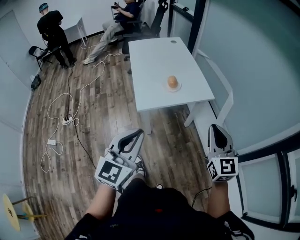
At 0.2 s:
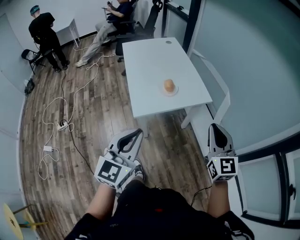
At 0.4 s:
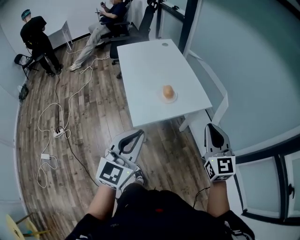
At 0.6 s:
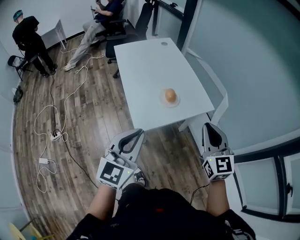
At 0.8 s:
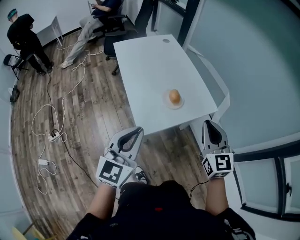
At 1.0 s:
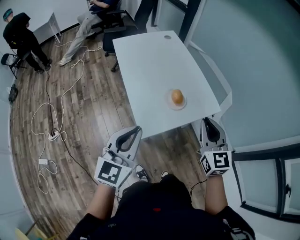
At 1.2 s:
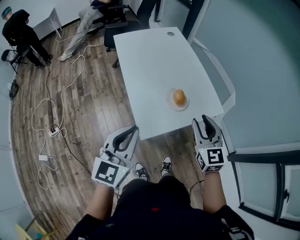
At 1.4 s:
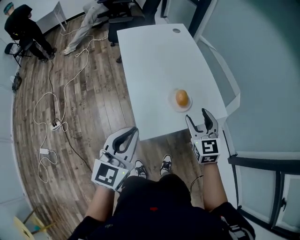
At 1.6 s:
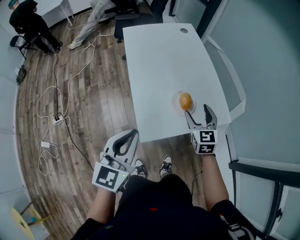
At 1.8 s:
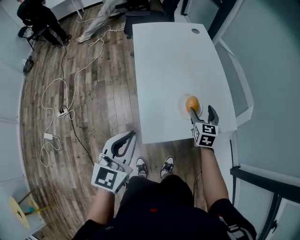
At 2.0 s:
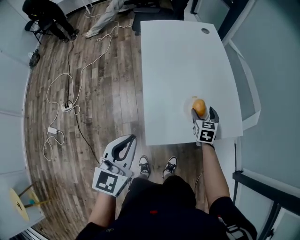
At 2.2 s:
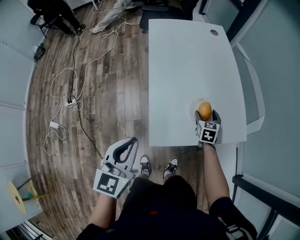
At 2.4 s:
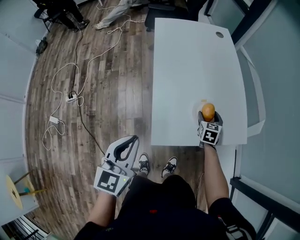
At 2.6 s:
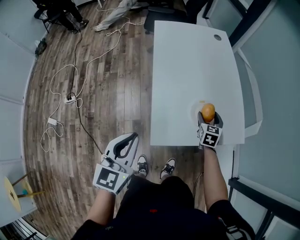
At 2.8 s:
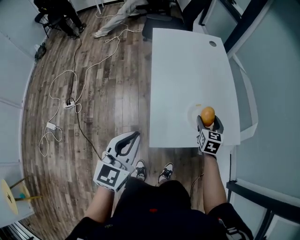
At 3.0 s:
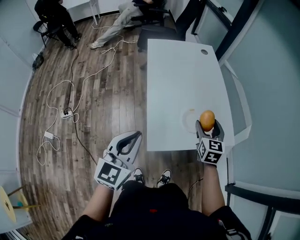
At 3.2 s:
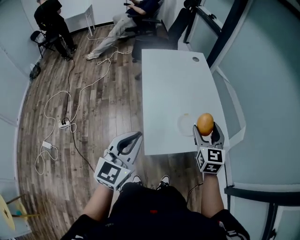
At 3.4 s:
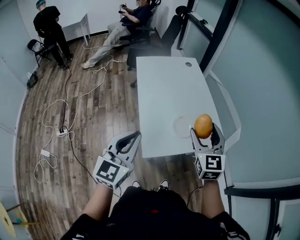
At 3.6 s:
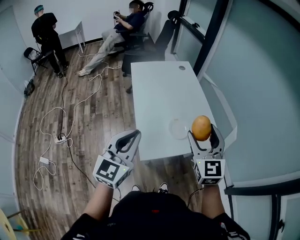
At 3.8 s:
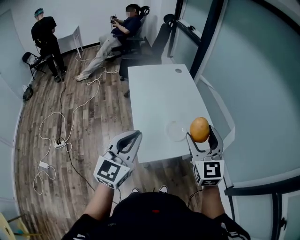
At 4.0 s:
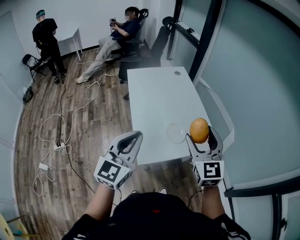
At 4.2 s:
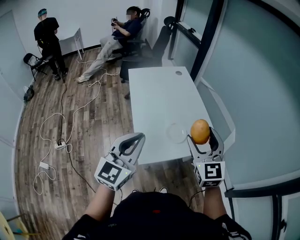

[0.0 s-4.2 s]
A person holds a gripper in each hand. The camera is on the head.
0.0 to 1.4 s: The two grippers go some 35 cm forward and to the left. The right gripper opens.
1.4 to 2.8 s: The left gripper is displaced to the left by about 5 cm. The right gripper shifts roughly 15 cm forward and downward.
2.8 to 4.2 s: The right gripper moves upward and backward, some 35 cm, and swivels approximately 30 degrees. The left gripper shifts some 15 cm upward and to the right, and swivels roughly 20 degrees.

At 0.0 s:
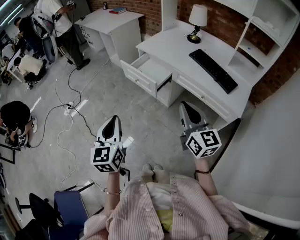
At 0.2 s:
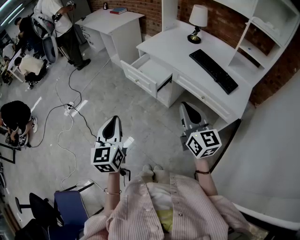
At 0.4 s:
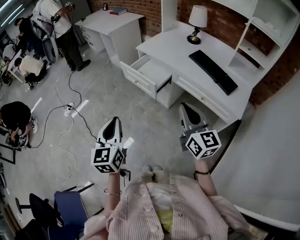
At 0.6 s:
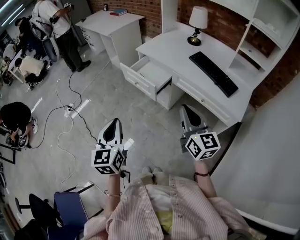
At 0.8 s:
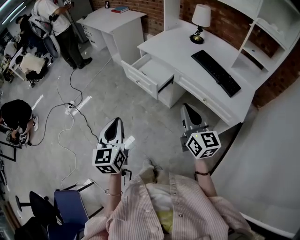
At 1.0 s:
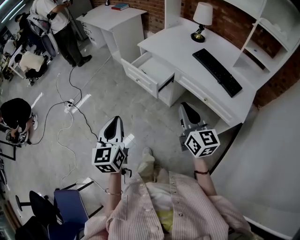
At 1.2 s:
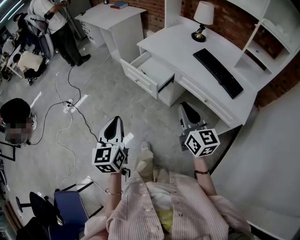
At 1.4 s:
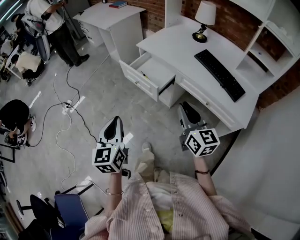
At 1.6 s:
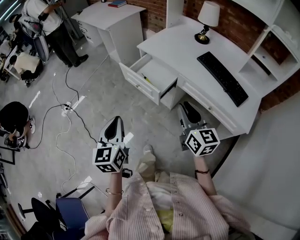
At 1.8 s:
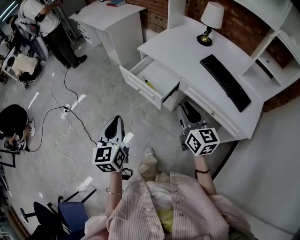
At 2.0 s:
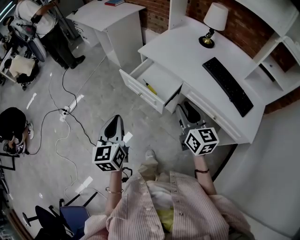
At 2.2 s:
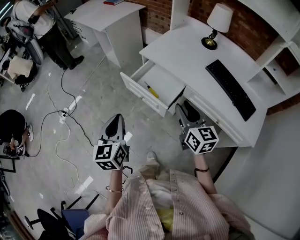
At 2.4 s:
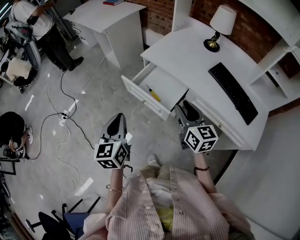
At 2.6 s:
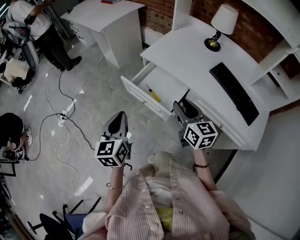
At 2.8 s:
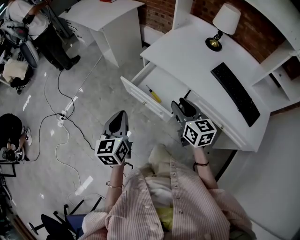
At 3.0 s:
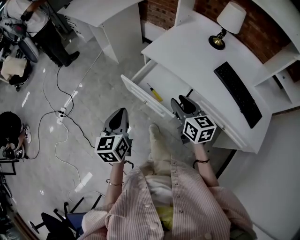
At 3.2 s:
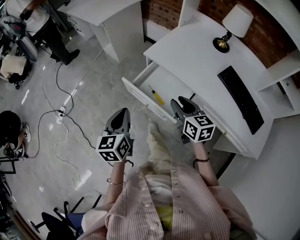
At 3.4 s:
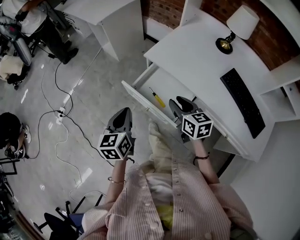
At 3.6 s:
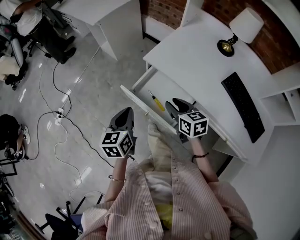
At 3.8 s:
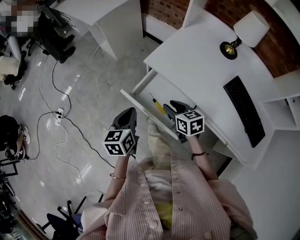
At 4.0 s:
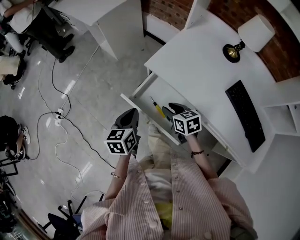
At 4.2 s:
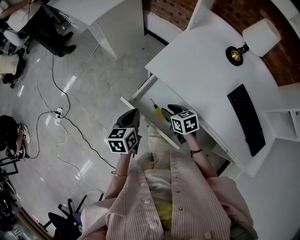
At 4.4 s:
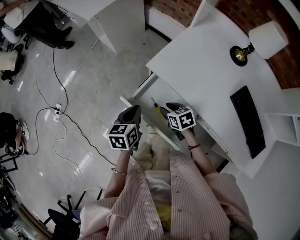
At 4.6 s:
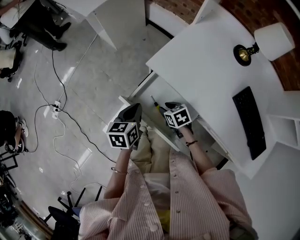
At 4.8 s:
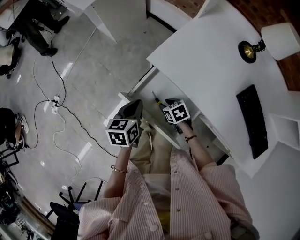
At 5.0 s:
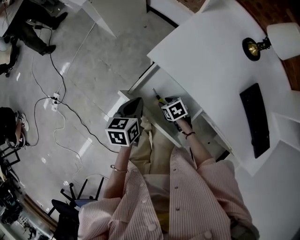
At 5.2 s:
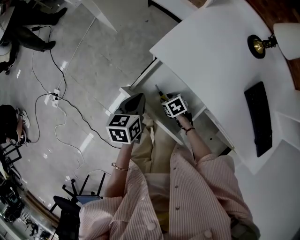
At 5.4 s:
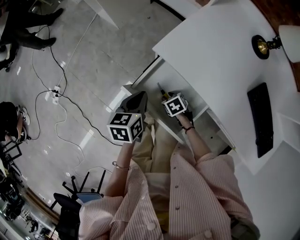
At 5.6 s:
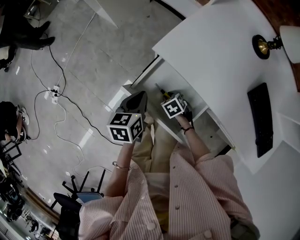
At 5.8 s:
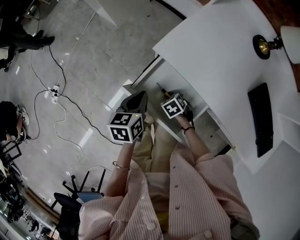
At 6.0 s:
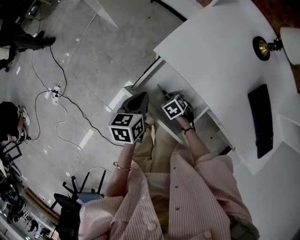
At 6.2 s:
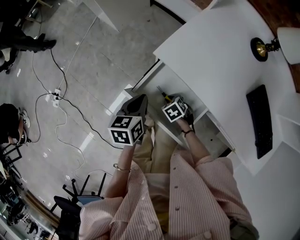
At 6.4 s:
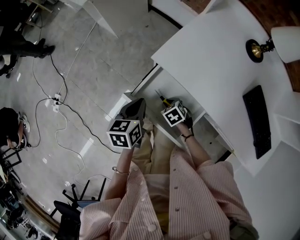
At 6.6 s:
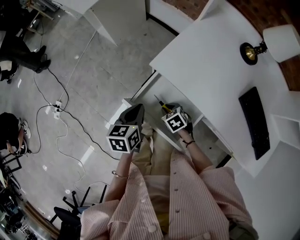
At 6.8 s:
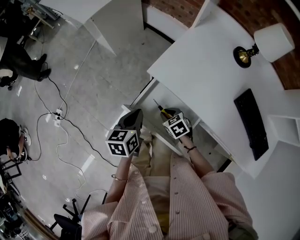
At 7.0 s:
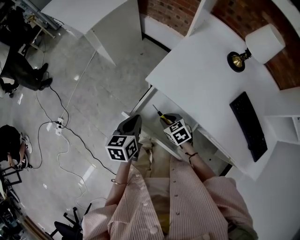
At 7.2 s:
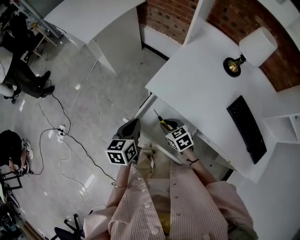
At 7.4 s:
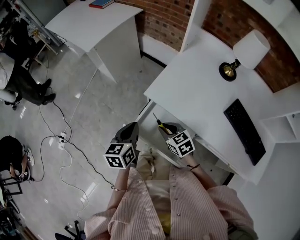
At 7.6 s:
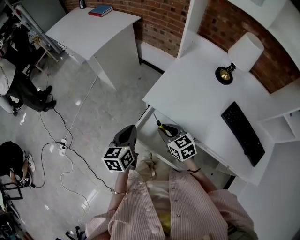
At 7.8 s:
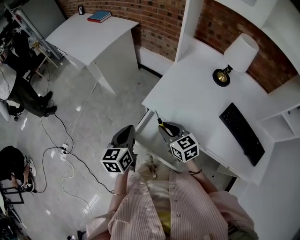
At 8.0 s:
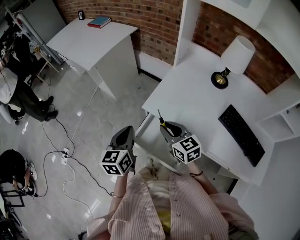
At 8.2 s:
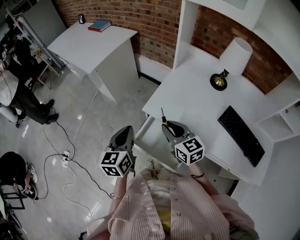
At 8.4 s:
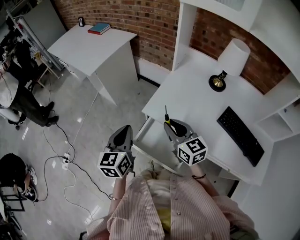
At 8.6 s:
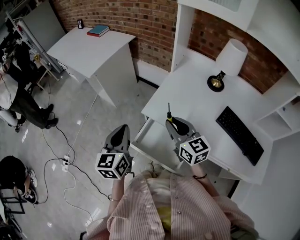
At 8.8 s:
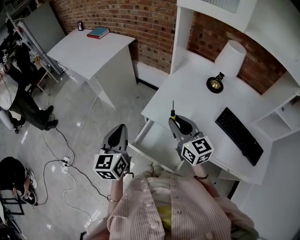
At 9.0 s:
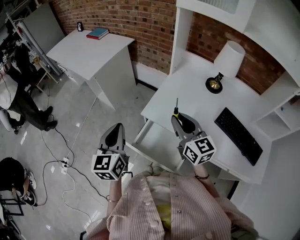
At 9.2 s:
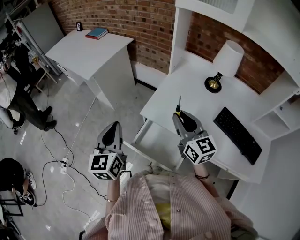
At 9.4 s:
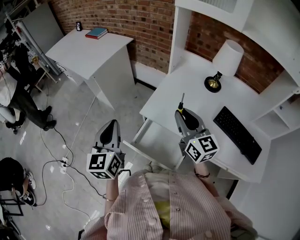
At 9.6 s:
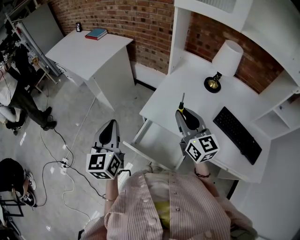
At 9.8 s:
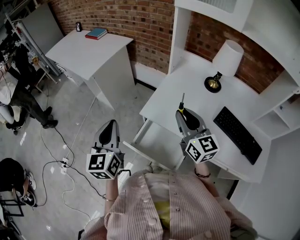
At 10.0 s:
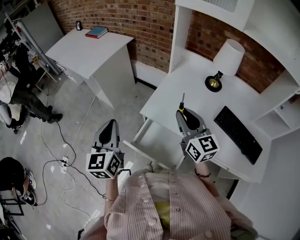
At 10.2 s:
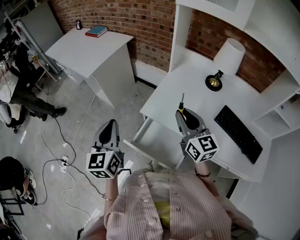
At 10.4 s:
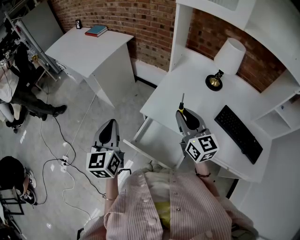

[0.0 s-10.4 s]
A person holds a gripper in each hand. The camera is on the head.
0.0 to 1.4 s: The left gripper heads forward, covering approximately 10 cm. Meanwhile the right gripper travels forward and downward by some 10 cm.
1.4 to 3.0 s: Both grippers travel together forward, about 30 cm.
3.0 to 4.4 s: The right gripper is displaced downward and forward by about 30 cm, and tips its fingers downward by roughly 30 degrees. The left gripper heads forward and downward, covering approximately 25 cm, and turns by roughly 20 degrees.
4.4 to 6.0 s: The left gripper changes place by approximately 5 cm. The right gripper moves downward, some 15 cm, and changes its angle by approximately 30 degrees.
6.0 to 7.4 s: The left gripper moves upward, roughly 10 cm, while the right gripper moves upward, some 20 cm, and tilts its fingers about 30 degrees upward.
7.4 to 9.0 s: Both grippers travel together upward, approximately 20 cm. The right gripper tilts its fingers roughly 40 degrees upward. The left gripper turns by approximately 20 degrees.
9.0 to 10.4 s: The grippers make only small movements.

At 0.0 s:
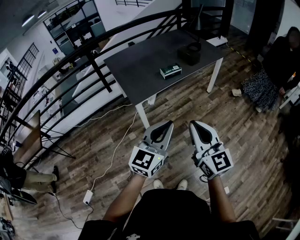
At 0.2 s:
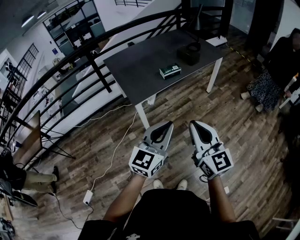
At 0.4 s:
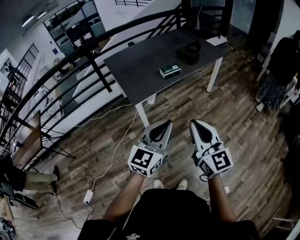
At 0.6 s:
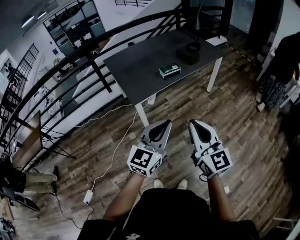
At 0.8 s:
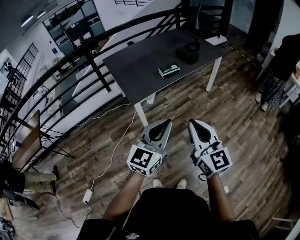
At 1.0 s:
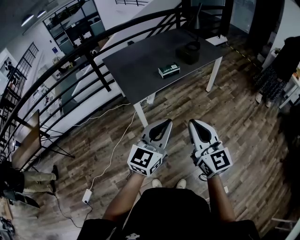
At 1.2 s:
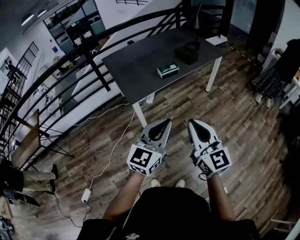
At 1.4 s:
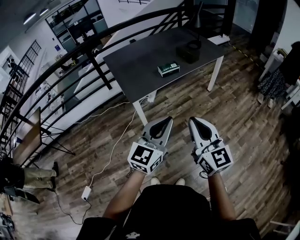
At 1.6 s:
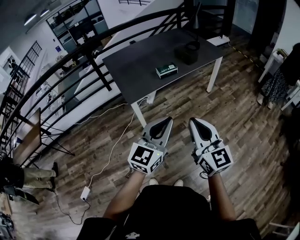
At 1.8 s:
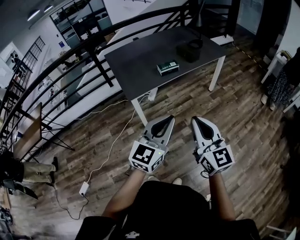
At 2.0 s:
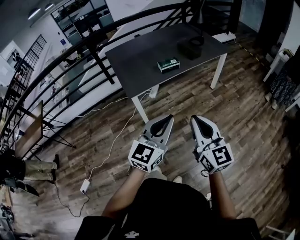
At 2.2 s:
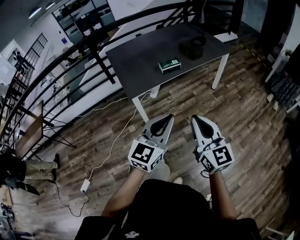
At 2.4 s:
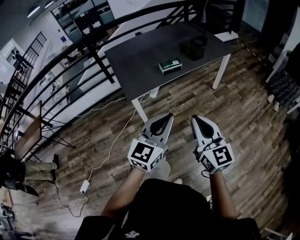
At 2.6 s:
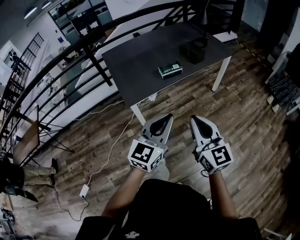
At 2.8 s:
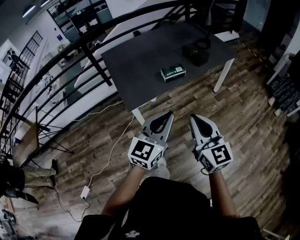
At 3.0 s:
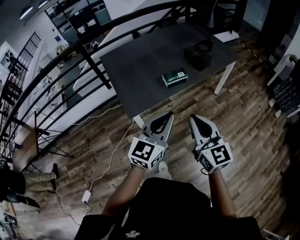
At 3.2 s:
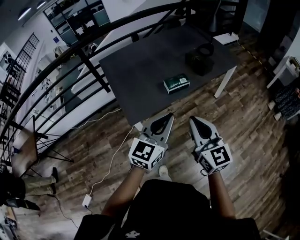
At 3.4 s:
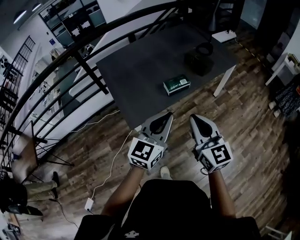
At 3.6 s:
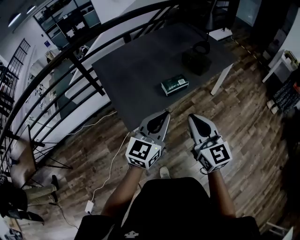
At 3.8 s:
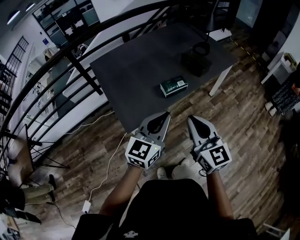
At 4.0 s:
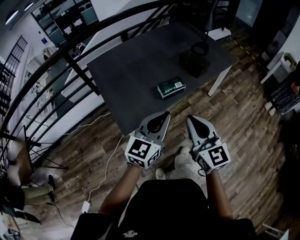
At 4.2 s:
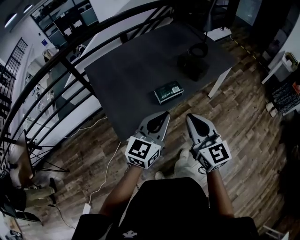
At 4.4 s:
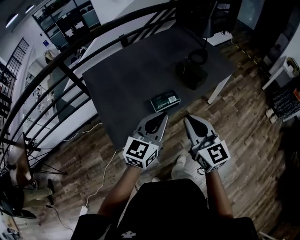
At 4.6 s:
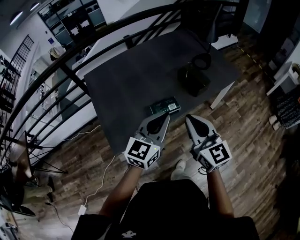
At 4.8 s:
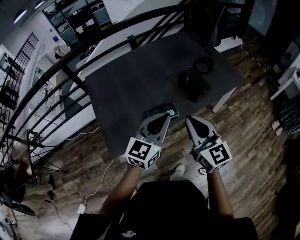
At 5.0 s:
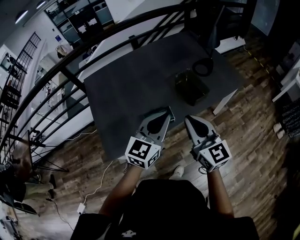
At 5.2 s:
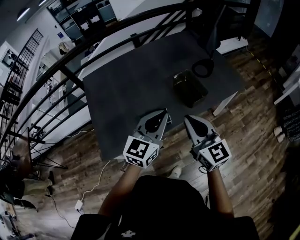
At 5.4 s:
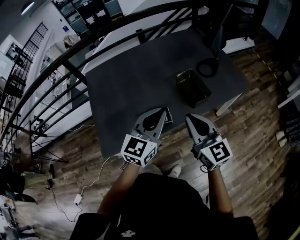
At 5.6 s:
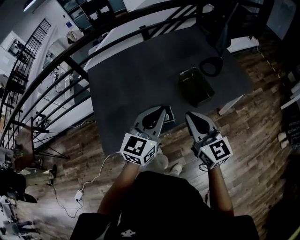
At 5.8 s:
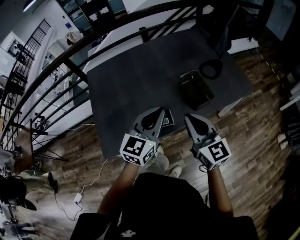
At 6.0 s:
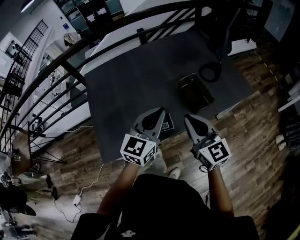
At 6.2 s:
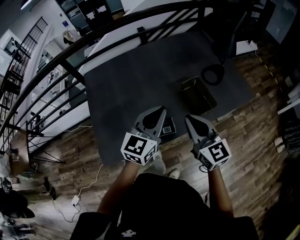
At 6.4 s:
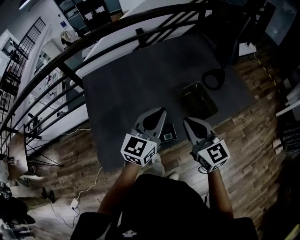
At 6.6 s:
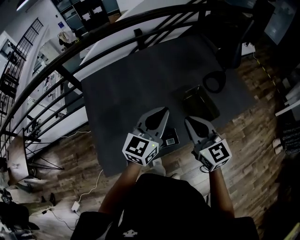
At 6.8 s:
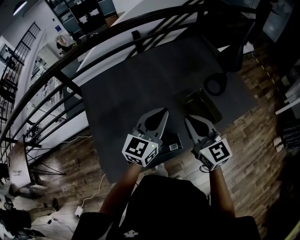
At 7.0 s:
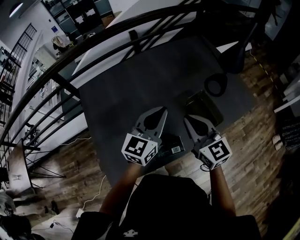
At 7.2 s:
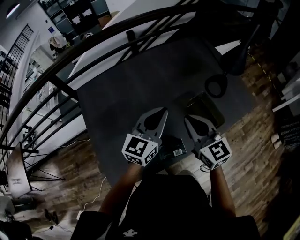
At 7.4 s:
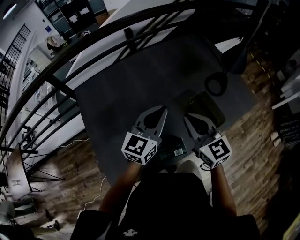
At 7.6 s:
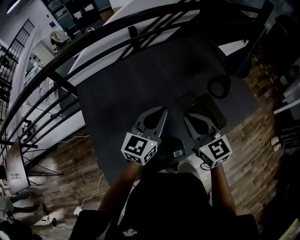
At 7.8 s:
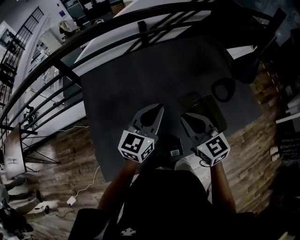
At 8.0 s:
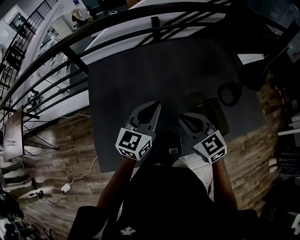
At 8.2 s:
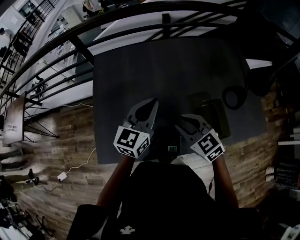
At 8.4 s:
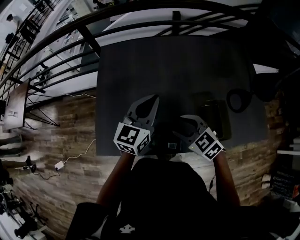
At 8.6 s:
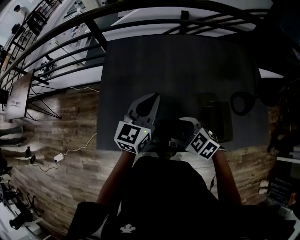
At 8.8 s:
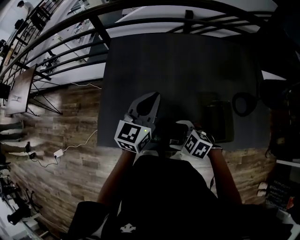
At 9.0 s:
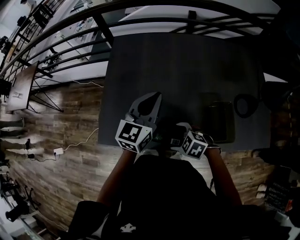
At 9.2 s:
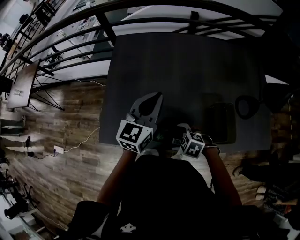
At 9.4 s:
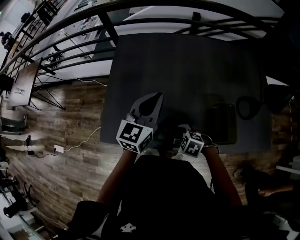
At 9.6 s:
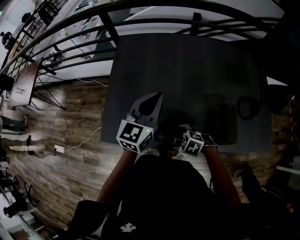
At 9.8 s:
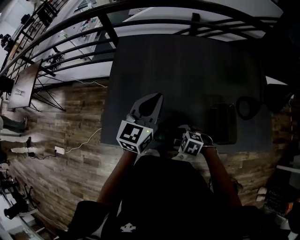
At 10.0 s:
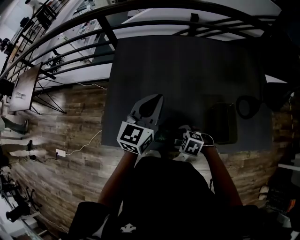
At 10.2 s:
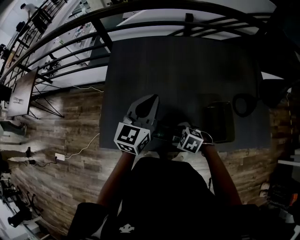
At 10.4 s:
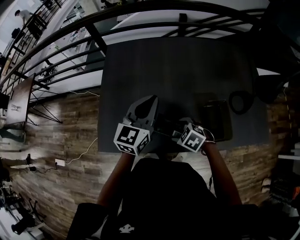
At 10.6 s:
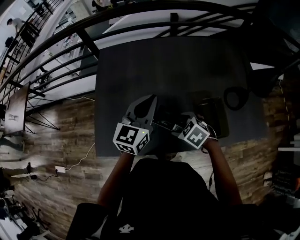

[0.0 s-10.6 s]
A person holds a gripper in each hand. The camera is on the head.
0.0 to 1.6 s: The grippers both shift to the right by roughly 5 cm.
1.6 to 3.0 s: The grippers both shift forward by some 20 cm.
3.0 to 4.6 s: The grippers both shift forward by about 25 cm.
4.6 to 6.0 s: The right gripper travels forward and to the right by roughly 15 cm; the left gripper heads forward, covering some 15 cm.
6.0 to 7.6 s: The grippers both shift forward and to the left by roughly 15 cm.
7.6 to 9.0 s: The left gripper ends up roughly 10 cm from where it was, and changes its angle by some 30 degrees. The right gripper travels downward by some 20 cm, tilts its fingers about 50 degrees downward, and opens.
9.0 to 10.6 s: The right gripper goes approximately 10 cm to the right and forward, and swivels approximately 20 degrees.
